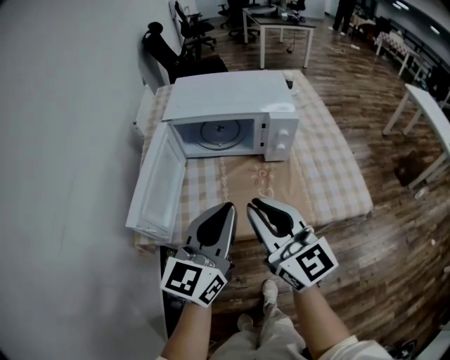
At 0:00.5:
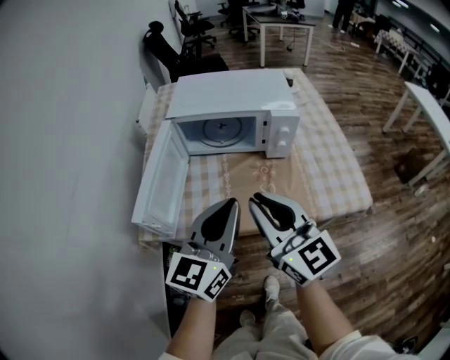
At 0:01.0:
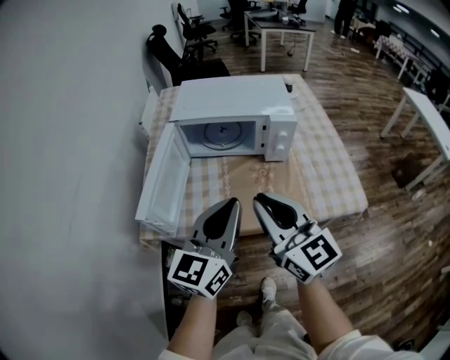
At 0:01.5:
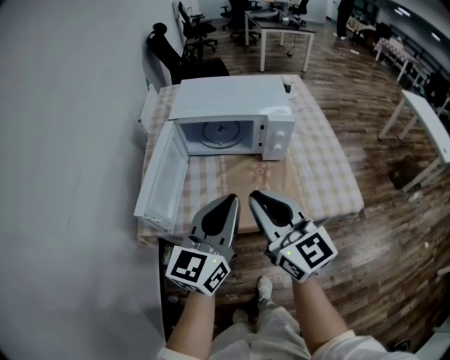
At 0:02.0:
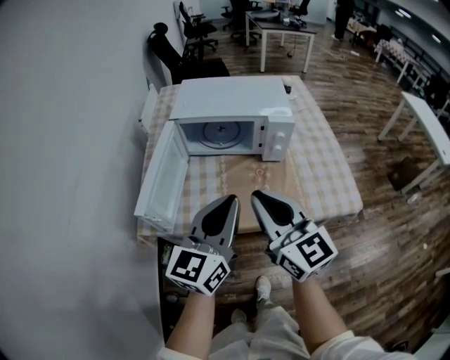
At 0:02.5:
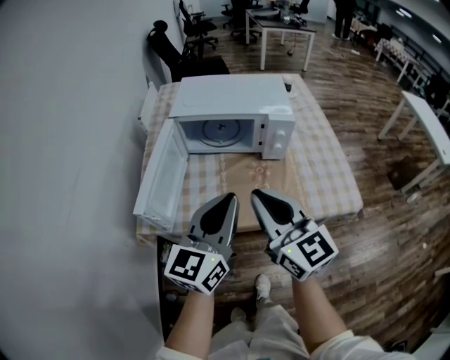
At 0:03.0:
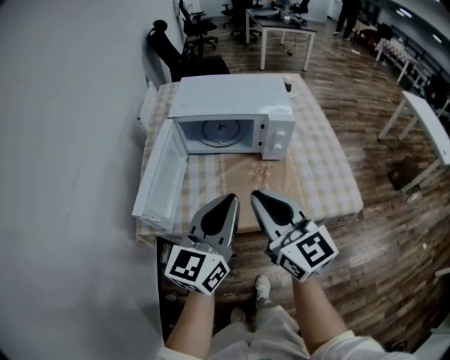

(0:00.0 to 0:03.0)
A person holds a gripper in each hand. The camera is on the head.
0:00.0 - 0:01.5: The grippers stay close to where they were, moving slightly.
0:01.5 - 0:03.0: Both grippers stay about where they are.

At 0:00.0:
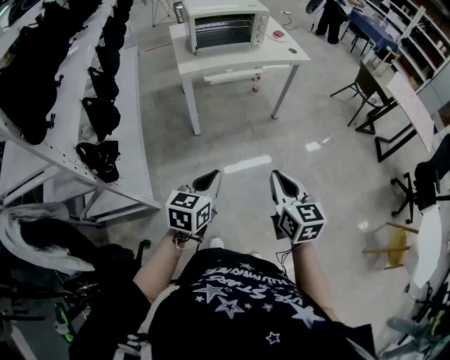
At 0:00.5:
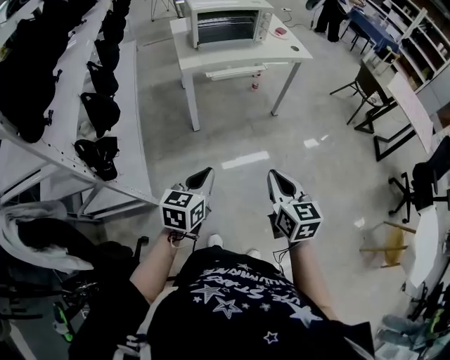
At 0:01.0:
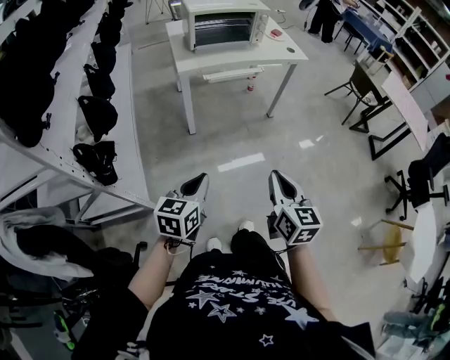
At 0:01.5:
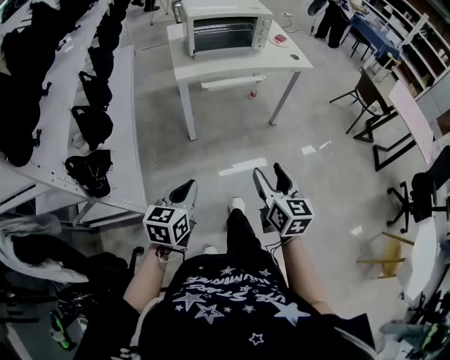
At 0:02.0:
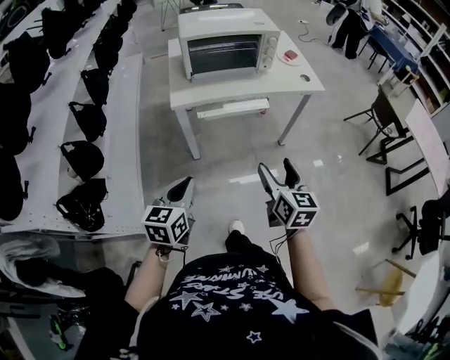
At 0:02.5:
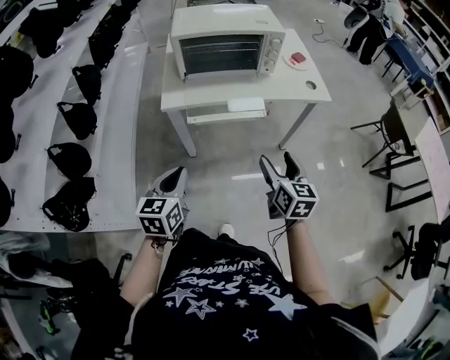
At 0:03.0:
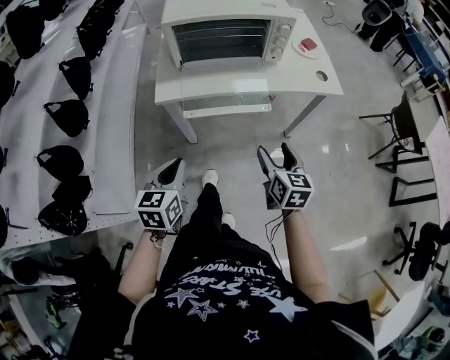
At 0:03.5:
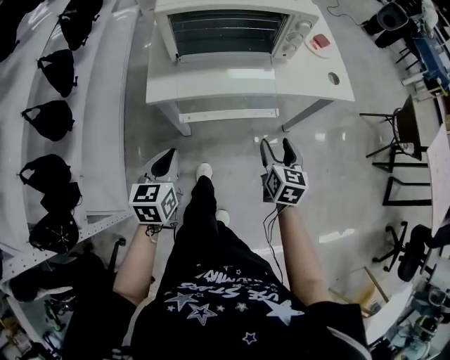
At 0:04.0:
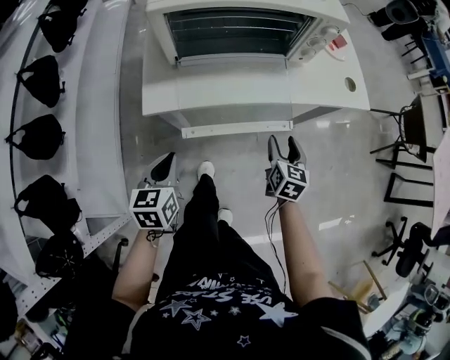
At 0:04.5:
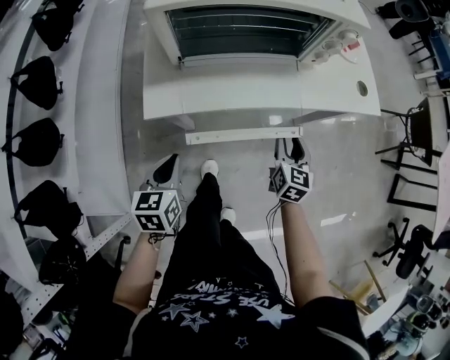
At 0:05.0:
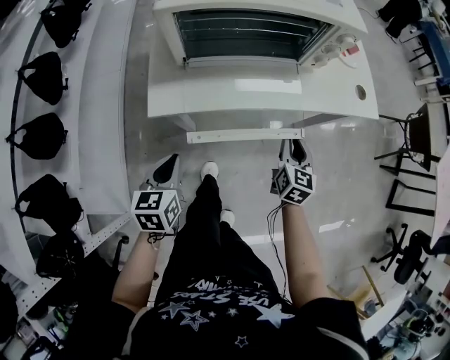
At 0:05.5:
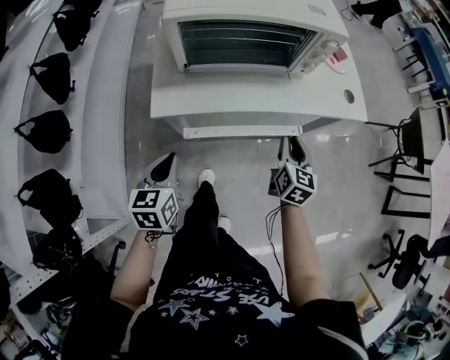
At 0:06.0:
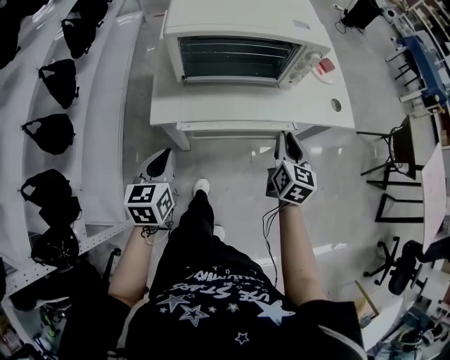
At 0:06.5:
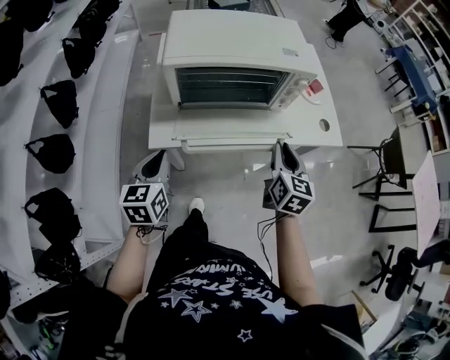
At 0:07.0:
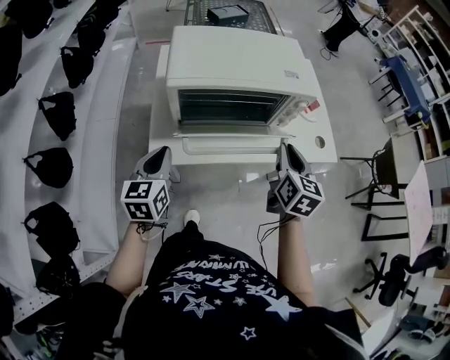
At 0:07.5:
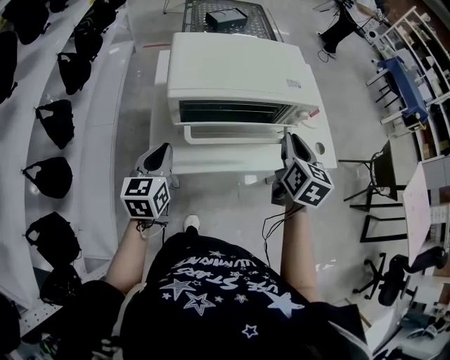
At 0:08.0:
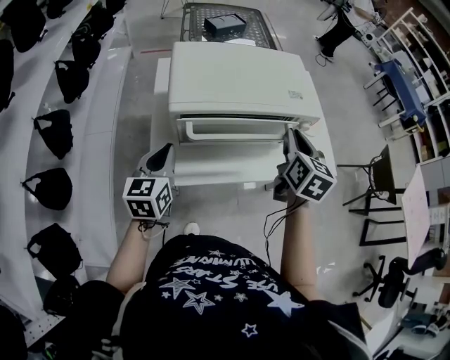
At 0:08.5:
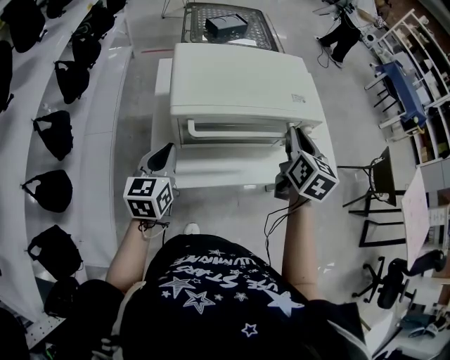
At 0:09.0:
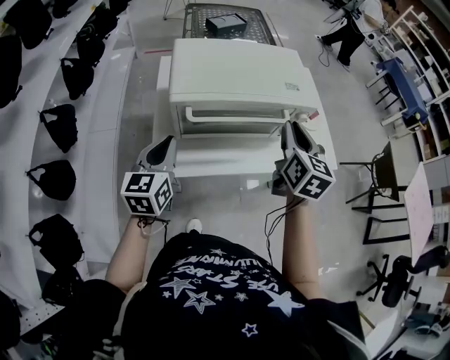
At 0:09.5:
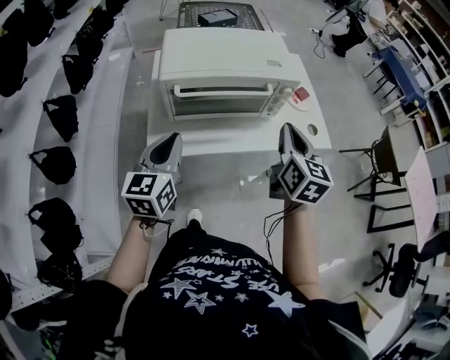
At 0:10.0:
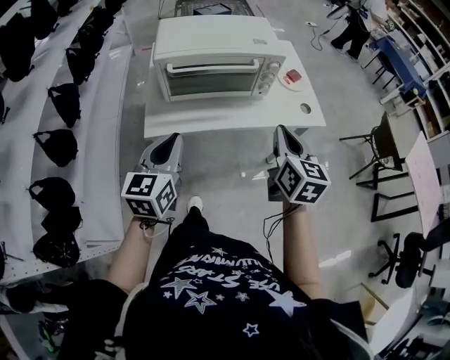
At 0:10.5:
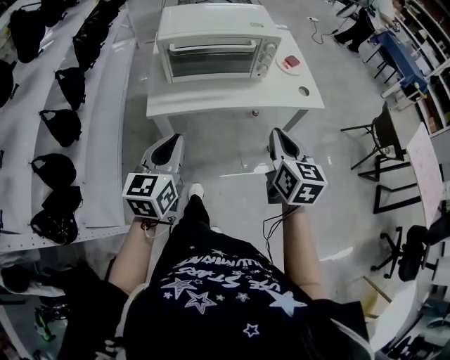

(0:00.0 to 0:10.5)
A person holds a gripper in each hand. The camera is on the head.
0:00.0 - 0:02.0: Both grippers move forward, about 25 cm. The right gripper opens up.
0:02.0 - 0:04.0: The grippers both shift forward and downward by approximately 35 cm.
0:04.0 - 0:06.5: The right gripper is displaced upward by about 20 cm, and closes. Meanwhile the left gripper heads upward and forward, covering about 15 cm.
0:06.5 - 0:08.5: The right gripper goes some 20 cm forward and upward; the left gripper heads forward, covering about 15 cm.
0:08.5 - 0:10.5: The left gripper heads backward and to the right, covering about 30 cm, while the right gripper heads backward, covering about 30 cm.

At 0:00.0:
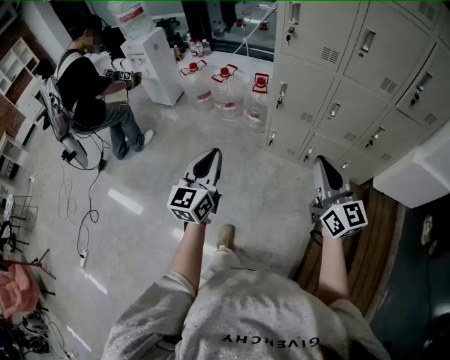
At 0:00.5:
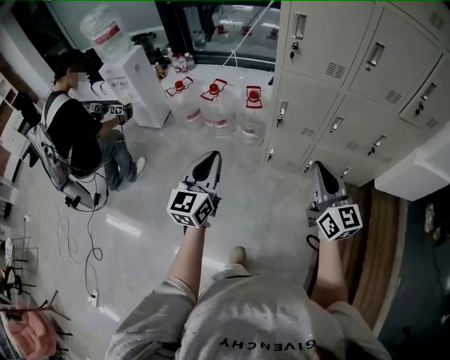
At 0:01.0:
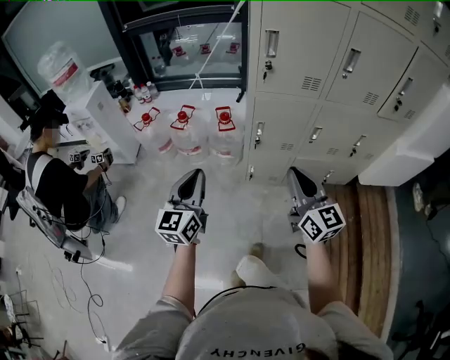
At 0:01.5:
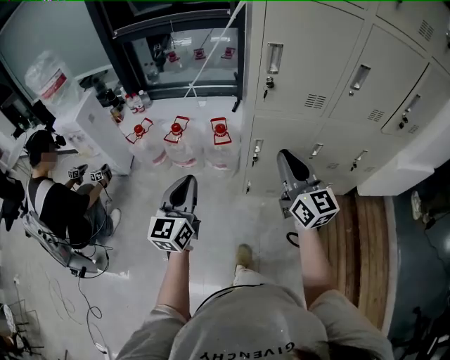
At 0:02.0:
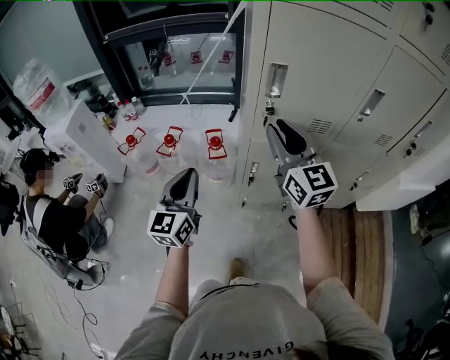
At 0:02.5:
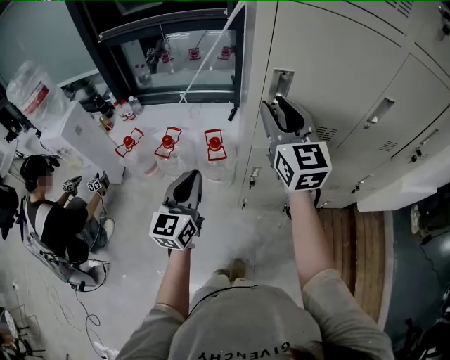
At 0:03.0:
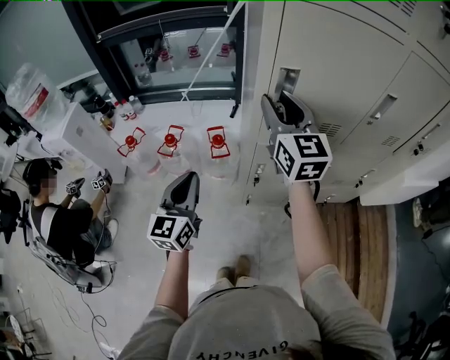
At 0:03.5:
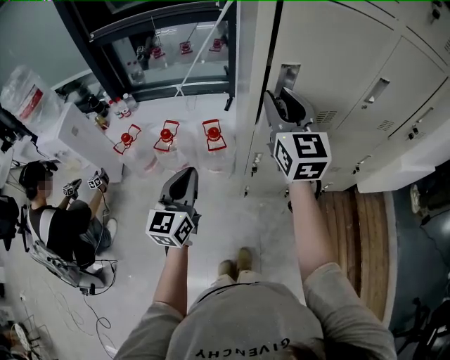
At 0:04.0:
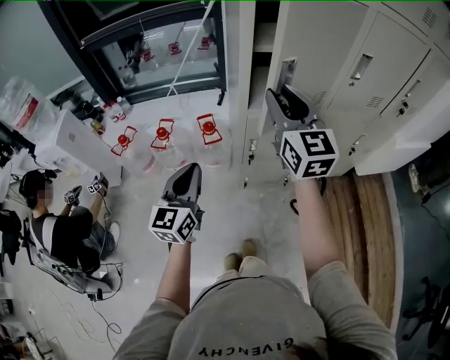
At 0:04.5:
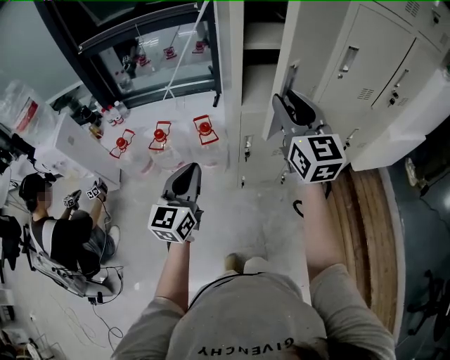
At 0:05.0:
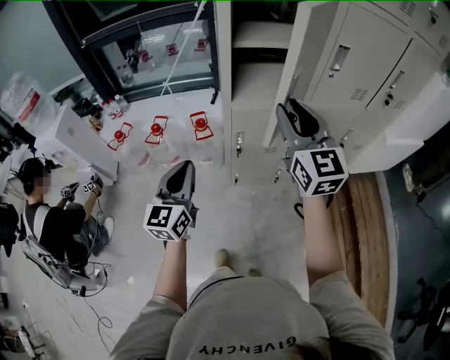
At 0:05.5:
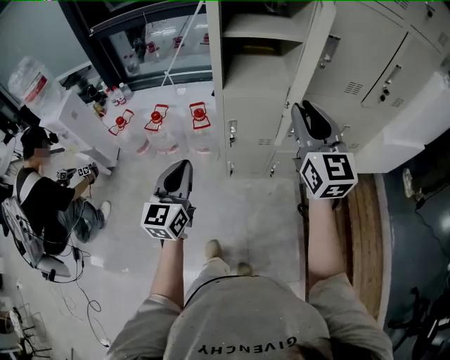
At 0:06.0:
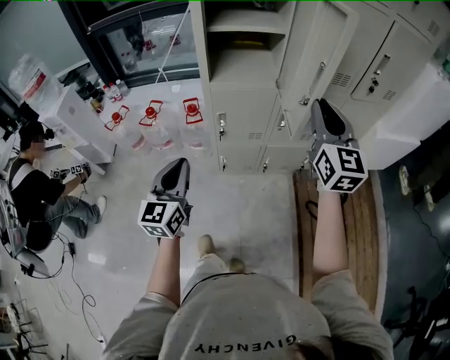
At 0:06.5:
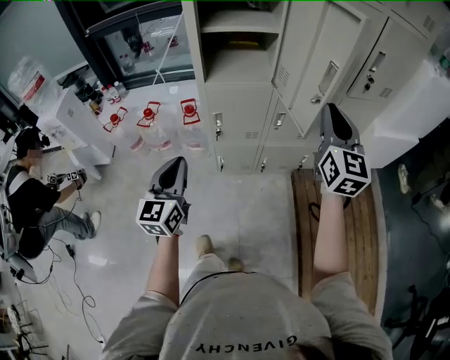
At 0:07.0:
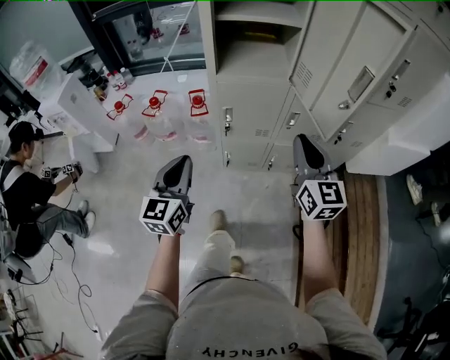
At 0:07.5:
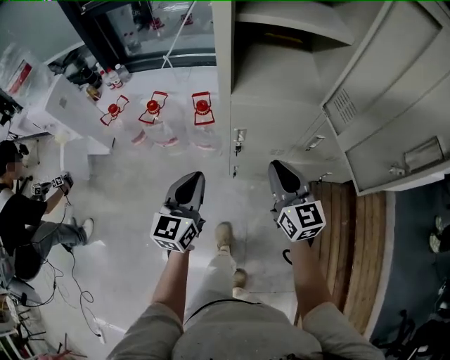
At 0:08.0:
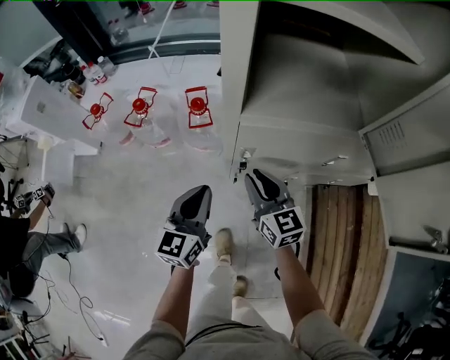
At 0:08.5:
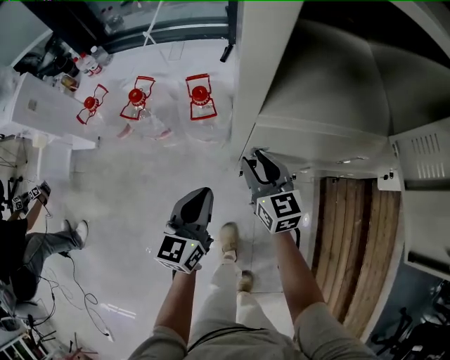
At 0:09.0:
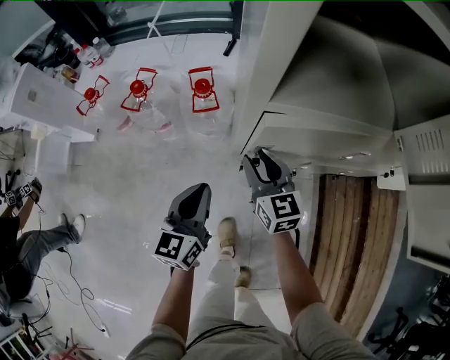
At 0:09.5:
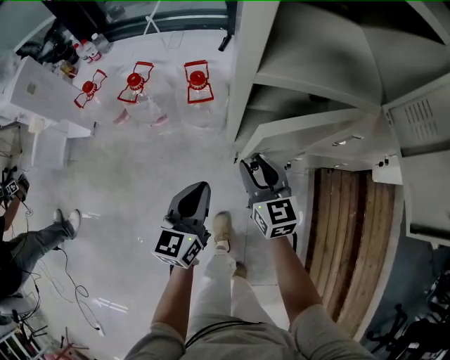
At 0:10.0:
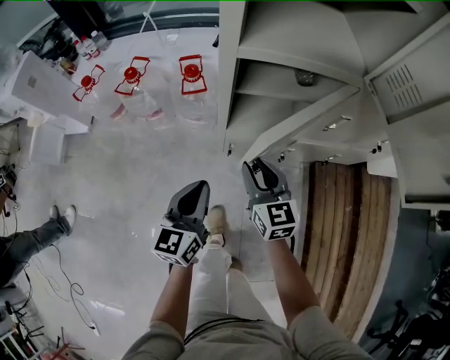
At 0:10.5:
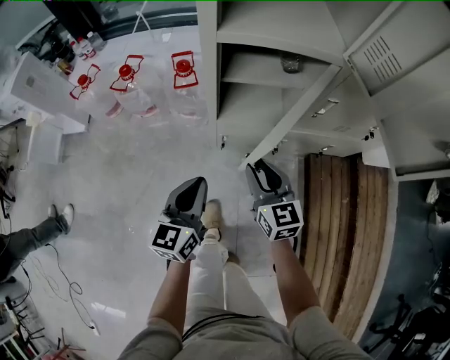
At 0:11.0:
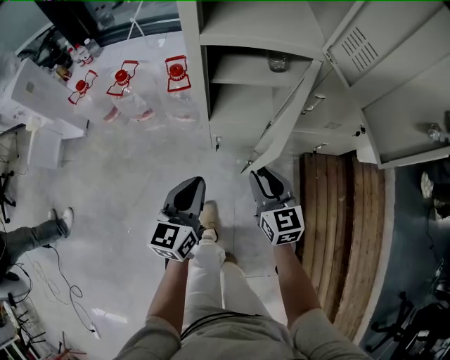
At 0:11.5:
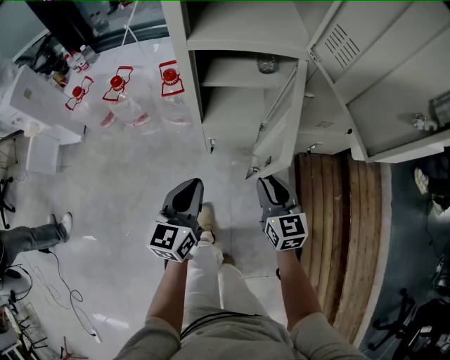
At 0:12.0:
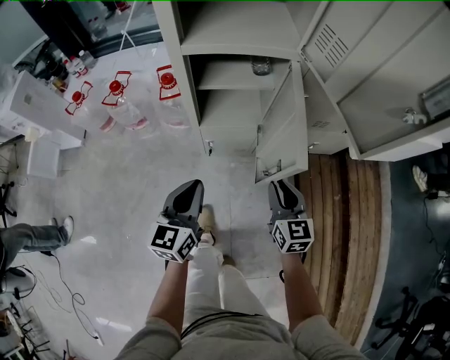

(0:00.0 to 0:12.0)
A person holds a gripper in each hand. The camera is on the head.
0:00.0 - 0:02.0: The two grippers travel together, forward, roughly 50 cm. The right gripper opens its fingers.
0:02.0 - 0:04.0: The right gripper moves roughly 10 cm forward and comes back.
0:04.0 - 0:06.0: The left gripper travels backward and to the right by approximately 20 cm. The right gripper is displaced to the right and backward by approximately 30 cm.
0:06.0 - 0:08.0: The right gripper goes approximately 50 cm downward, to the left and forward, and rotates approximately 40 degrees; the left gripper is displaced forward and downward by about 30 cm.
0:08.0 - 0:10.0: The grippers both shift backward and downward by about 10 cm.
0:10.0 - 0:12.0: The left gripper goes roughly 10 cm to the right, while the right gripper travels to the right and backward by approximately 20 cm.

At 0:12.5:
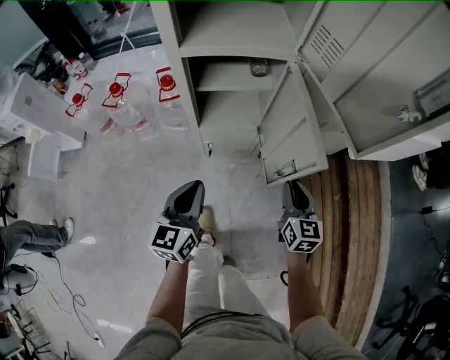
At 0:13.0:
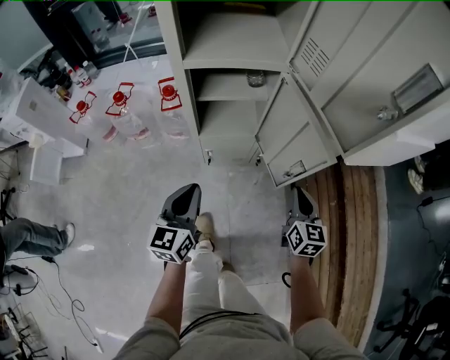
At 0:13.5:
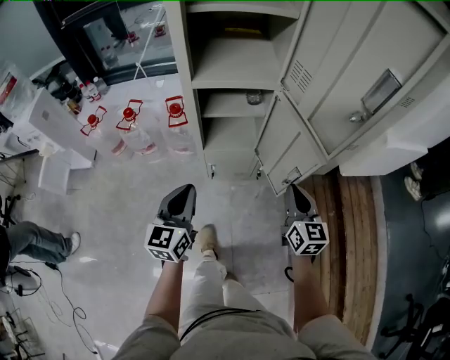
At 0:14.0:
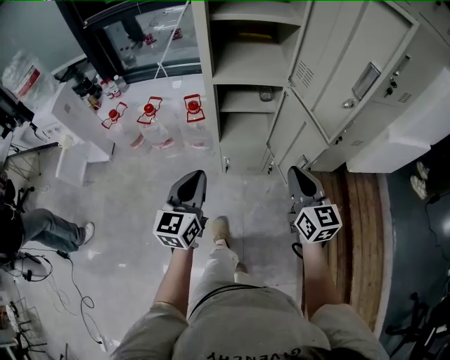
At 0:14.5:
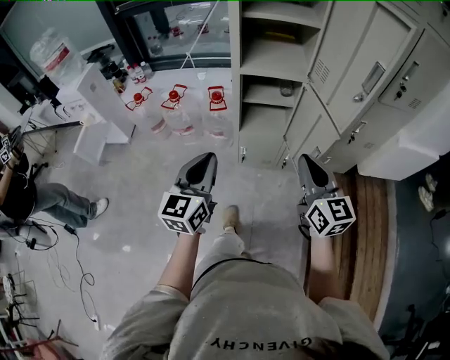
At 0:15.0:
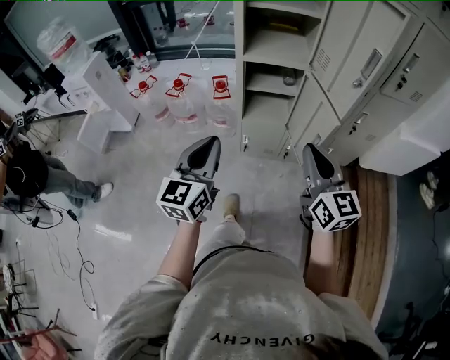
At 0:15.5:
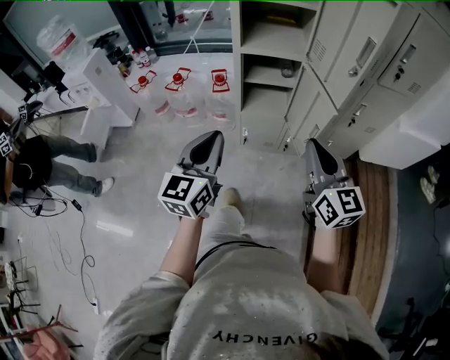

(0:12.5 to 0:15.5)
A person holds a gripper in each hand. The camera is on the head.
0:12.5 - 0:14.0: The left gripper is displaced upward and backward by about 20 cm. The right gripper shifts about 20 cm upward, and swivels some 20 degrees.
0:14.0 - 0:15.5: The grippers both shift backward and upward by about 15 cm.
